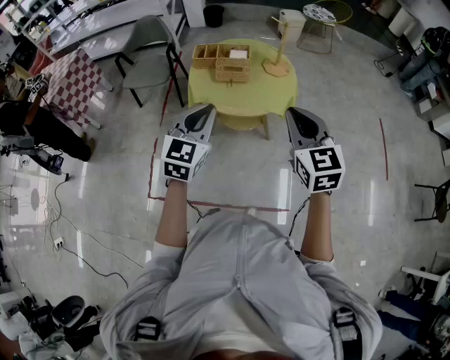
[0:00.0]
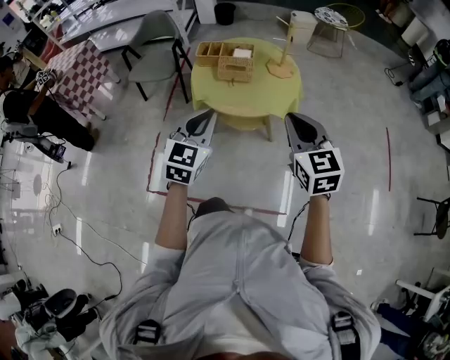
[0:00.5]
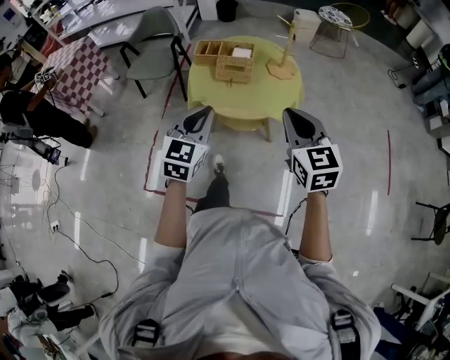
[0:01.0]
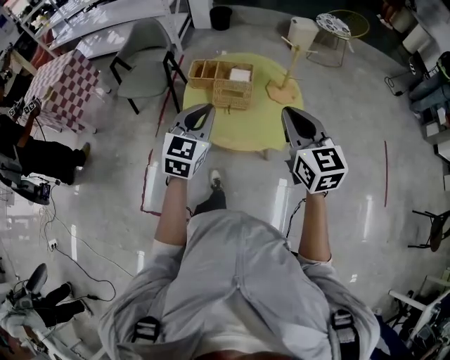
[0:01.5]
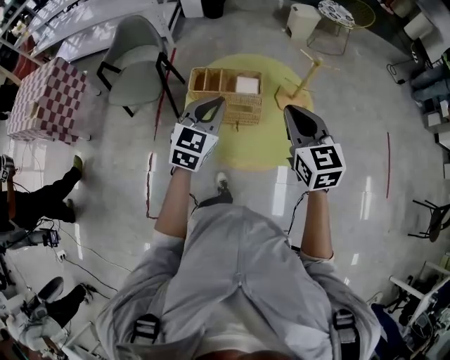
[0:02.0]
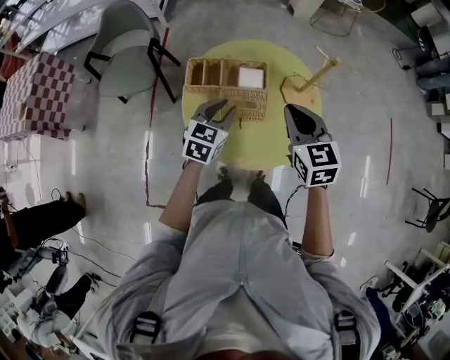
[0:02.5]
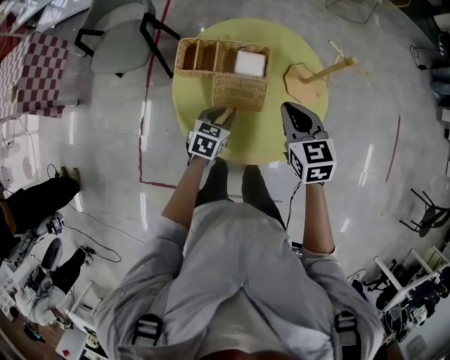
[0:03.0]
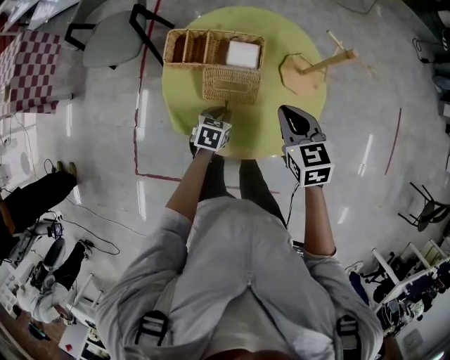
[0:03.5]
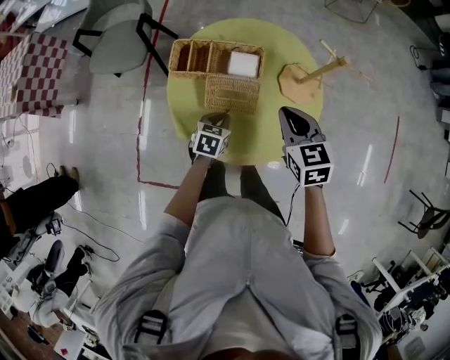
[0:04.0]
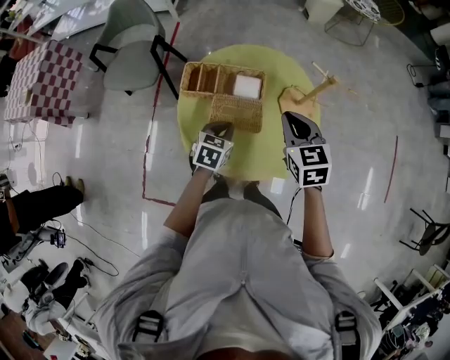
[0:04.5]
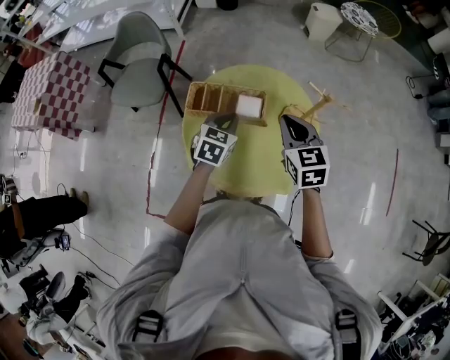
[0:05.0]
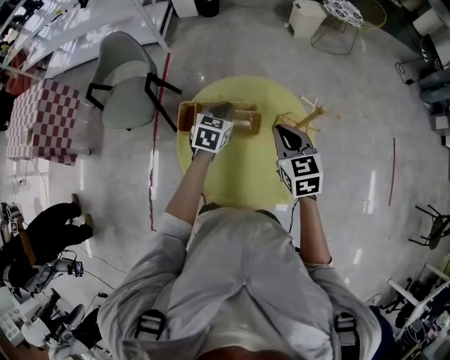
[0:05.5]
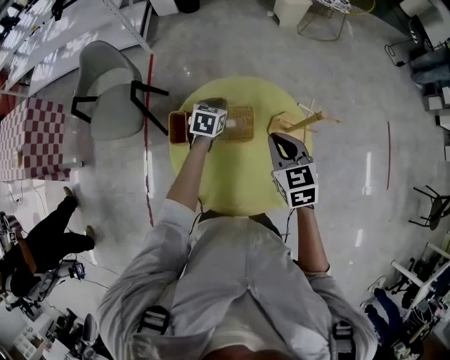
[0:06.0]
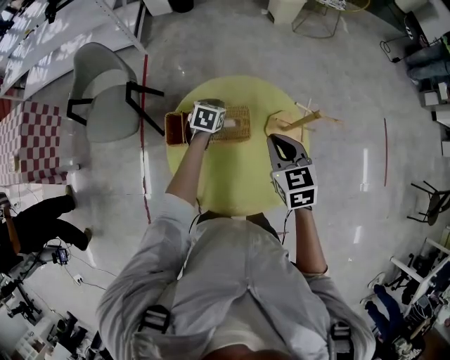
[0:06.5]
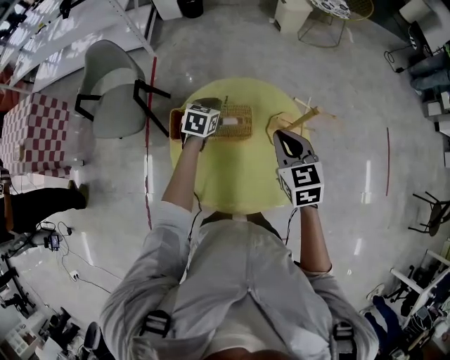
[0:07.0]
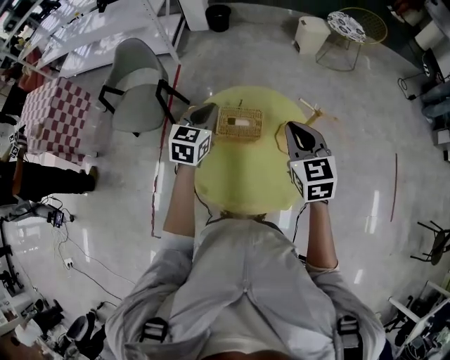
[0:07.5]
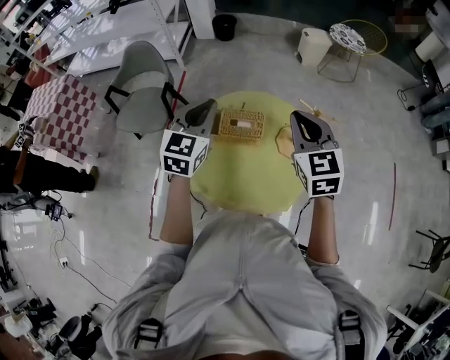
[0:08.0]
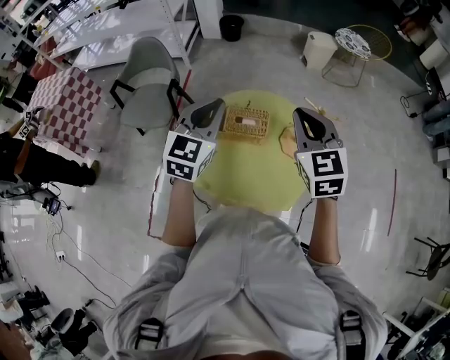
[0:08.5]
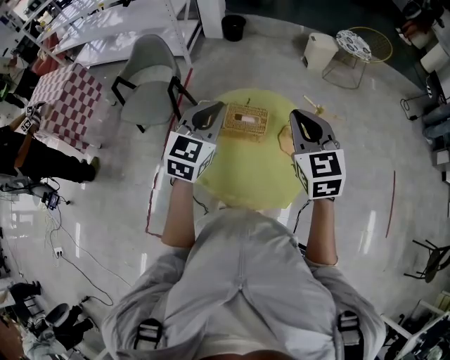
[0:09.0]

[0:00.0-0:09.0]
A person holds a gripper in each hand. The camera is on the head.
0:00.0 to 0:02.0: Both grippers move forward, some 35 cm.
0:02.0 to 0:04.5: The right gripper is displaced downward and forward by some 20 cm, while the left gripper shifts approximately 20 cm downward, and swivels roughly 40 degrees.
0:04.5 to 0:07.0: The right gripper heads forward, covering approximately 5 cm. Meanwhile the left gripper shifts roughly 25 cm forward.
0:07.0 to 0:09.0: The right gripper is displaced upward and backward by approximately 15 cm, and turns by roughly 20 degrees. The left gripper shifts some 35 cm upward and backward, and swivels roughly 30 degrees.

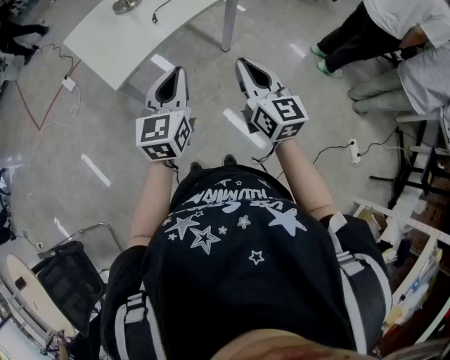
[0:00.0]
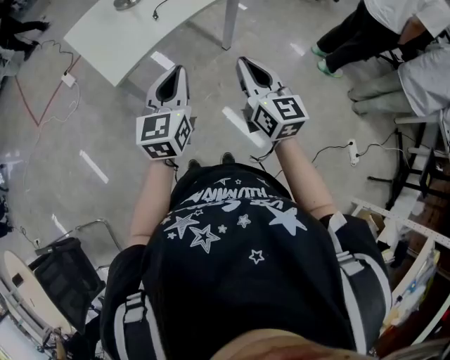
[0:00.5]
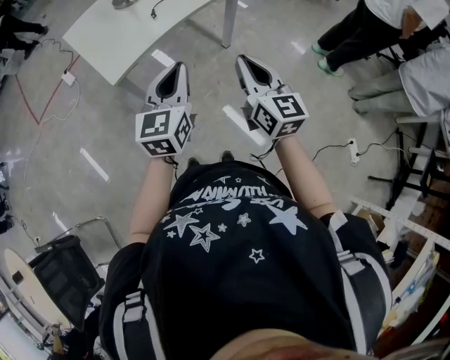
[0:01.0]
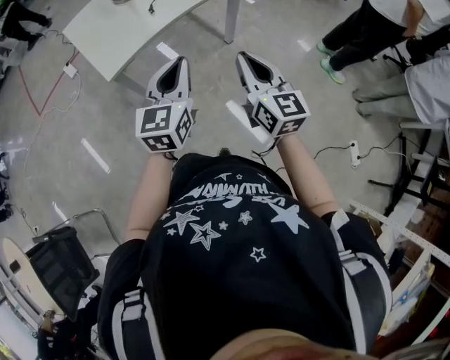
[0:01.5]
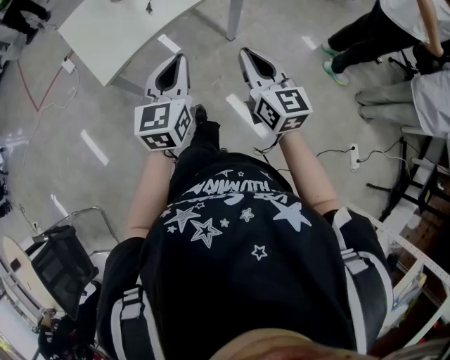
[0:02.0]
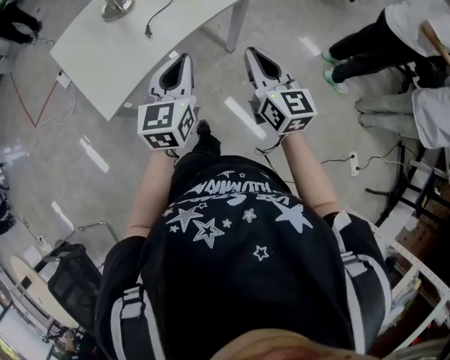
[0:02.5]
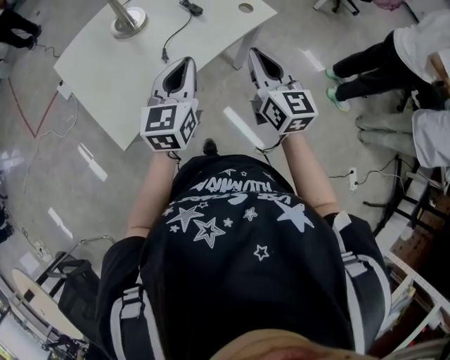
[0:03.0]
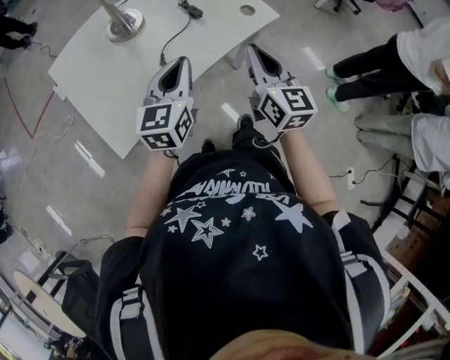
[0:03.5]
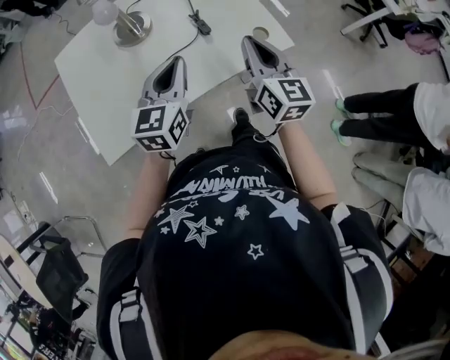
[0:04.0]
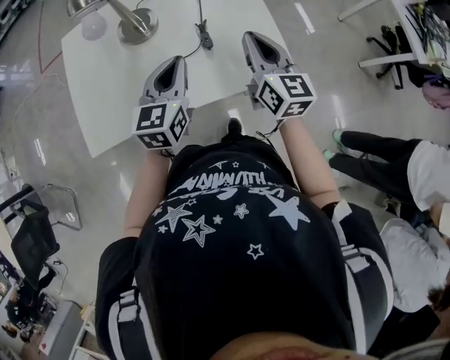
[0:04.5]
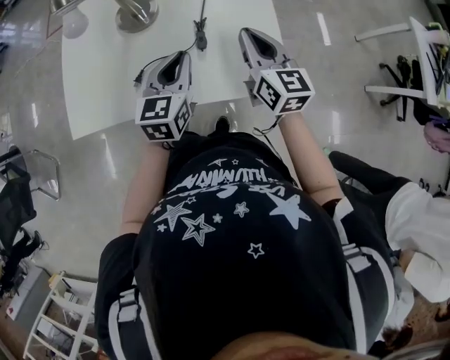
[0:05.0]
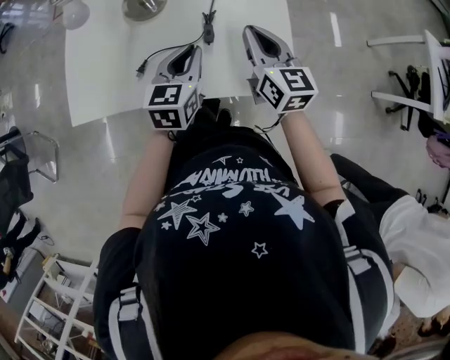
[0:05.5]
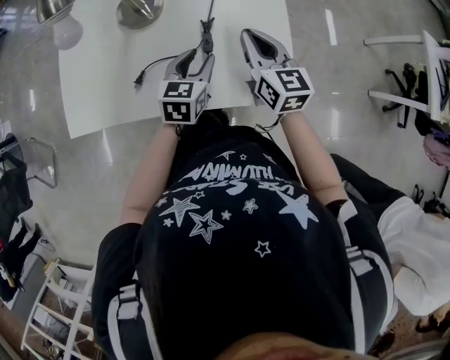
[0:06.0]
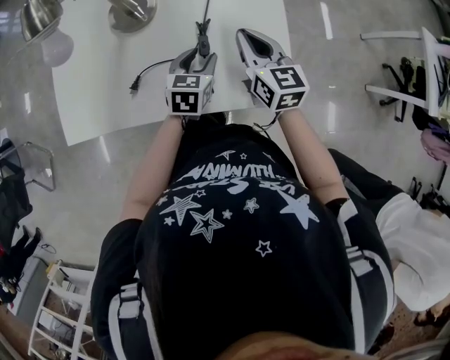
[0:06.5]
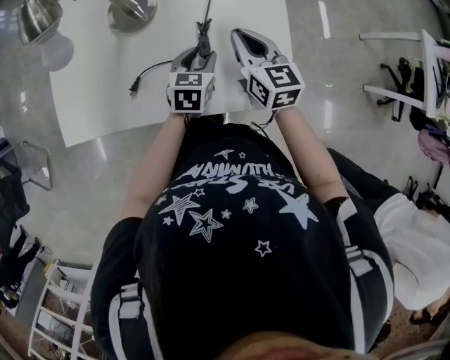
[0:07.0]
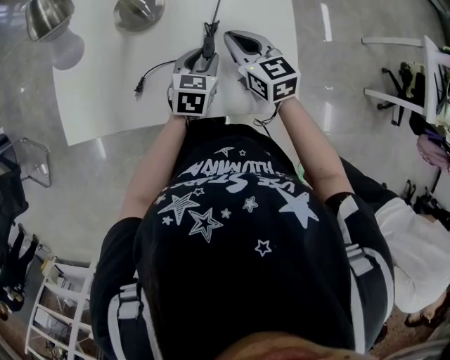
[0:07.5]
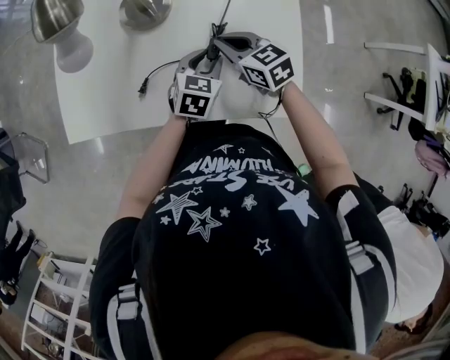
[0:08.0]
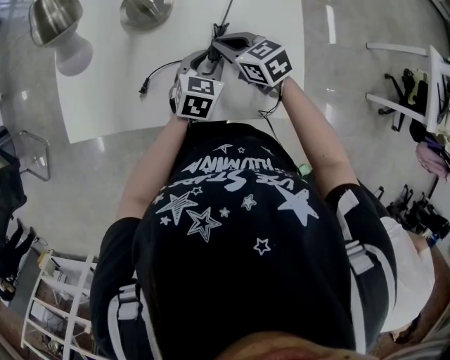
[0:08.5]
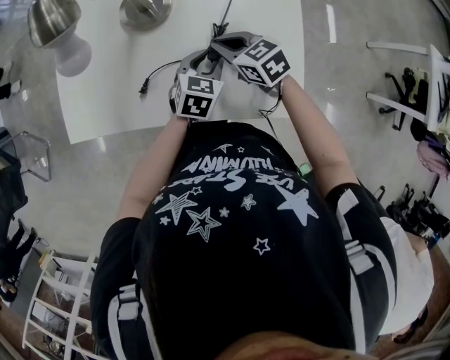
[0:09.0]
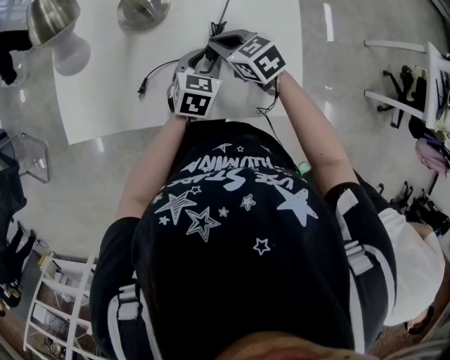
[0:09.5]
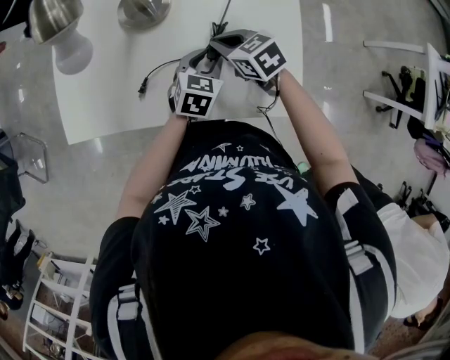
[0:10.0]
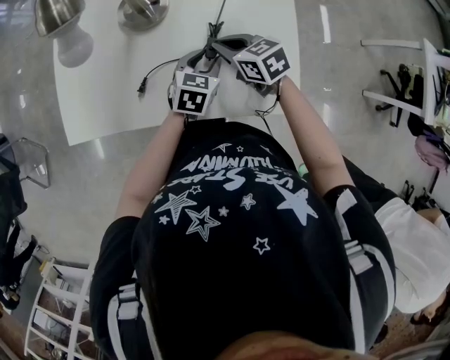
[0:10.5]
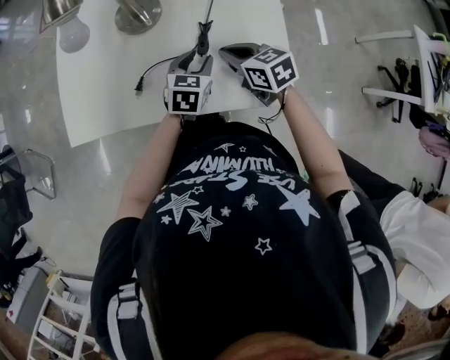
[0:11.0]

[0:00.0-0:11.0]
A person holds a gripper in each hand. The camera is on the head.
0:00.0 to 0:02.0: Both grippers move forward, about 5 cm.
0:02.0 to 0:03.5: Both grippers move forward, roughly 25 cm.
0:03.5 to 0:05.5: The right gripper ends up some 30 cm from where it was, and turns by roughly 40 degrees; the left gripper moves roughly 25 cm, and rotates some 40 degrees.
0:05.5 to 0:07.5: The right gripper shifts roughly 10 cm downward, forward and to the left. The left gripper is displaced downward and forward by some 15 cm, and opens its fingers.
0:07.5 to 0:09.0: The right gripper ends up about 5 cm from where it was, and rotates about 30 degrees.
0:09.0 to 0:11.0: The right gripper is displaced backward by approximately 5 cm.

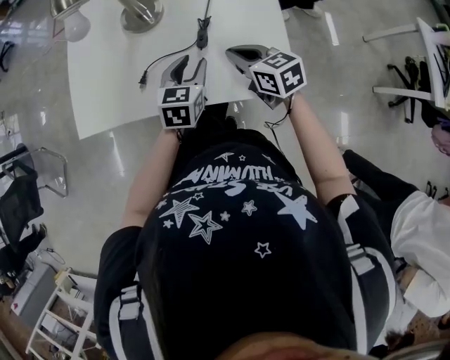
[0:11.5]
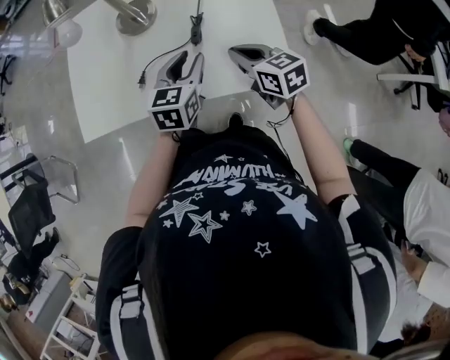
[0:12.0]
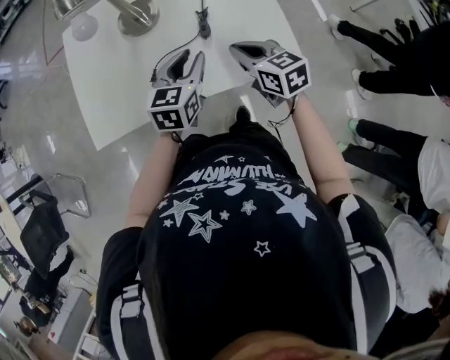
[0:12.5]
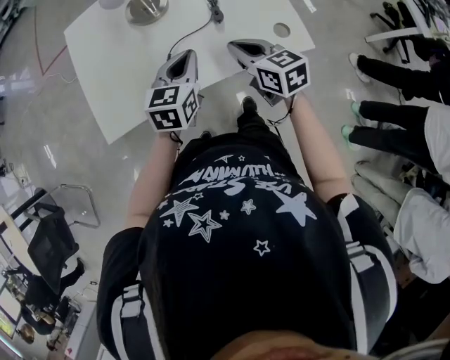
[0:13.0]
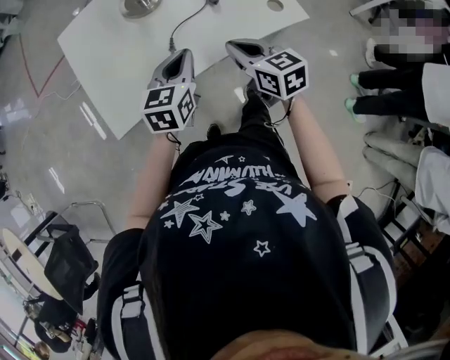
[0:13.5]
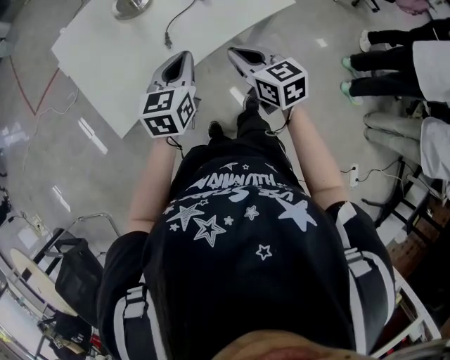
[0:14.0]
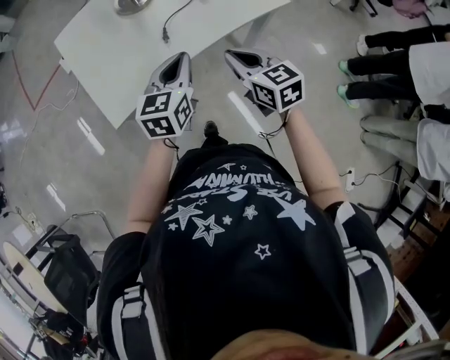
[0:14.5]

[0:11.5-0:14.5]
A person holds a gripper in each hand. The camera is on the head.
0:11.5 to 0:13.0: The right gripper moves to the left and backward, some 10 cm; the left gripper goes roughly 10 cm to the left and upward, and closes up.
0:13.0 to 0:14.5: The grippers both shift backward by roughly 20 cm.

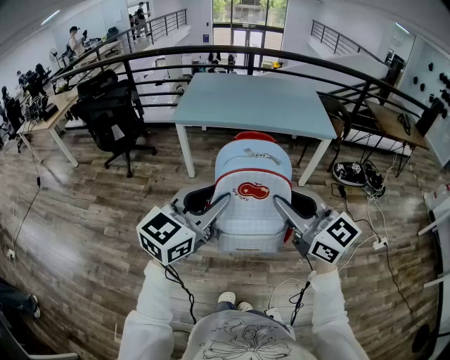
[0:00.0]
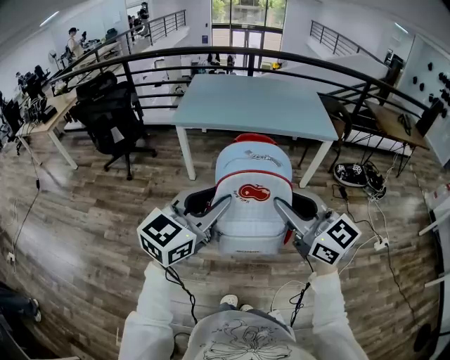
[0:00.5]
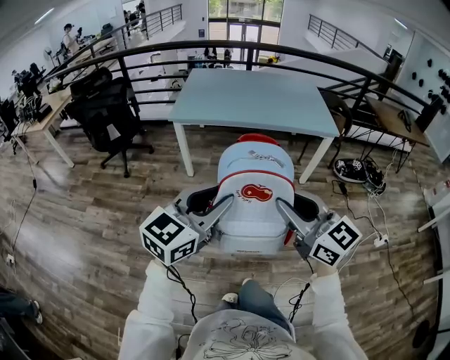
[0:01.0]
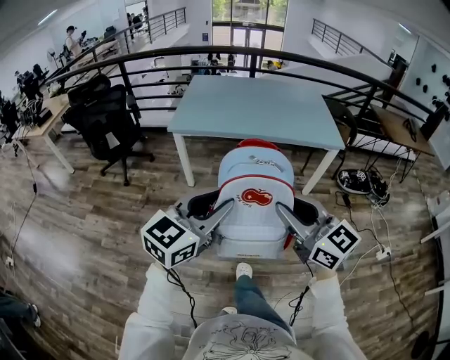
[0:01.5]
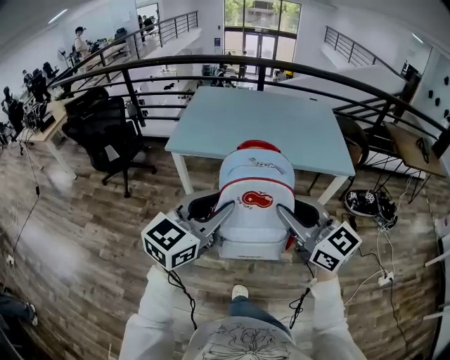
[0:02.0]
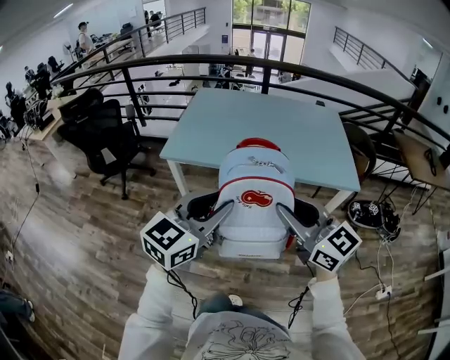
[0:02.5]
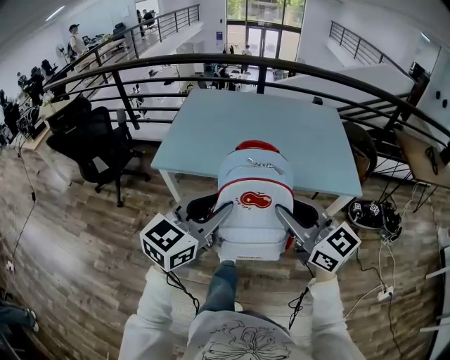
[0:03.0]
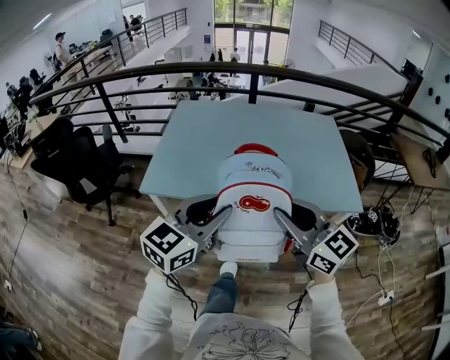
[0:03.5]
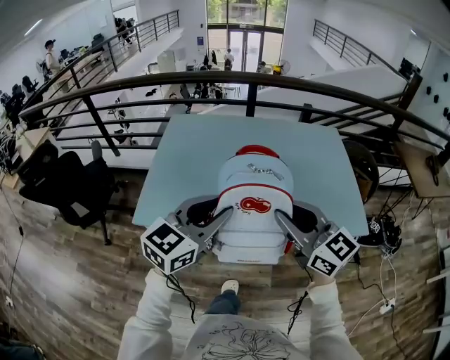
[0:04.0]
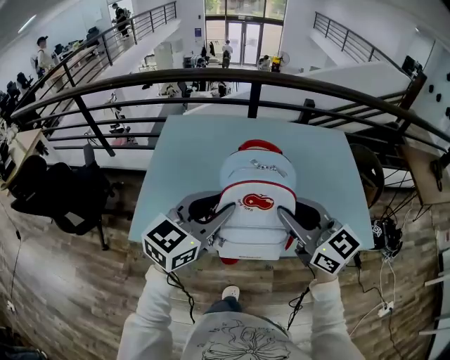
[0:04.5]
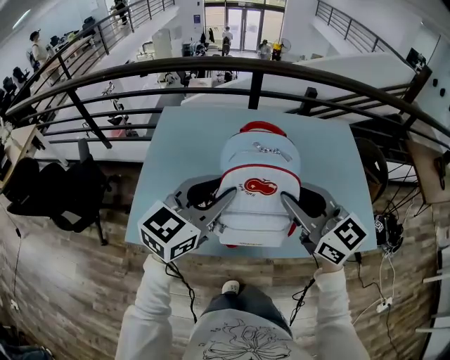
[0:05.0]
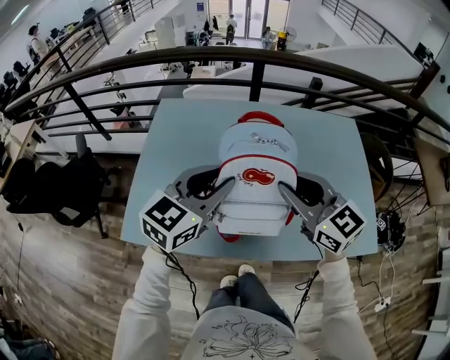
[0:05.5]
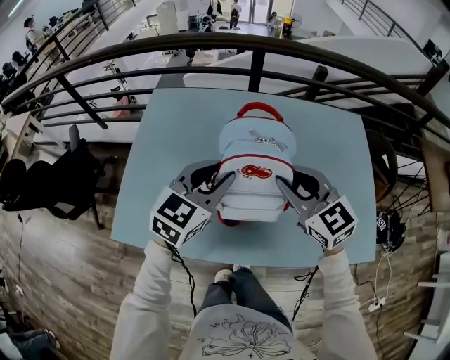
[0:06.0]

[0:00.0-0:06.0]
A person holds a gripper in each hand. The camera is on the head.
0:00.0 to 0:02.0: The two grippers go approximately 30 cm forward.
0:02.0 to 0:04.0: Both grippers are carried forward, roughly 50 cm.
0:04.0 to 0:06.0: The two grippers go some 30 cm forward.
